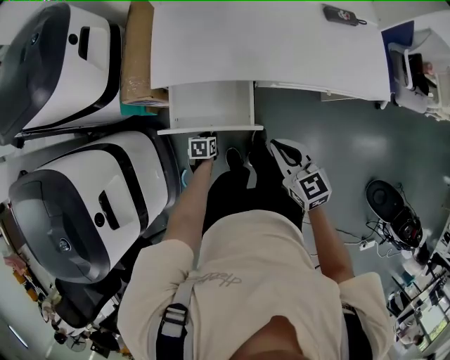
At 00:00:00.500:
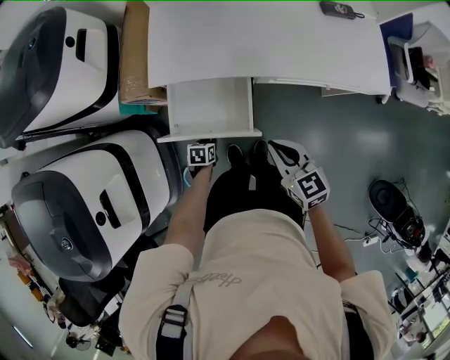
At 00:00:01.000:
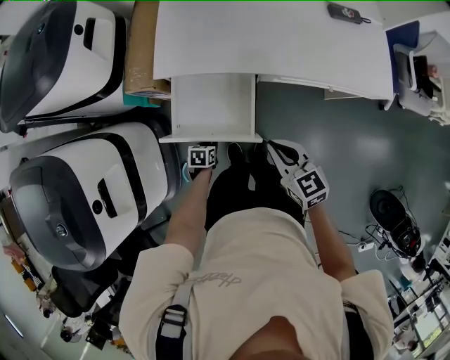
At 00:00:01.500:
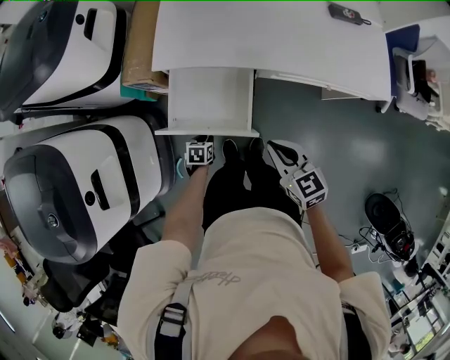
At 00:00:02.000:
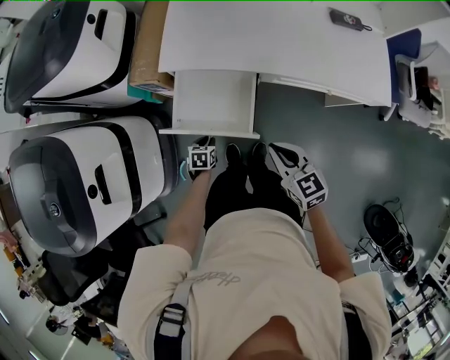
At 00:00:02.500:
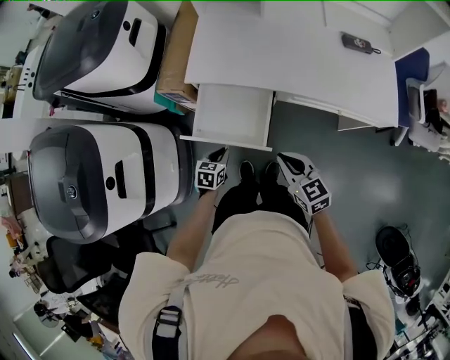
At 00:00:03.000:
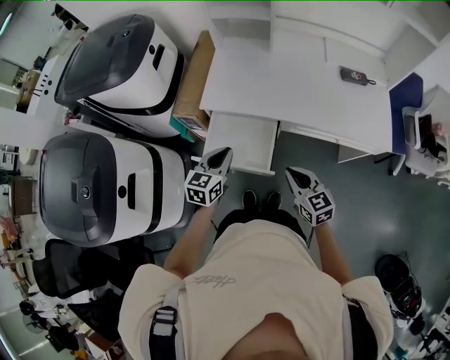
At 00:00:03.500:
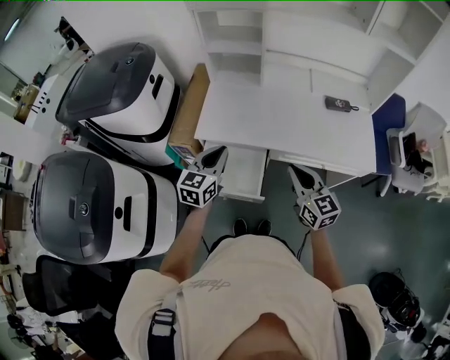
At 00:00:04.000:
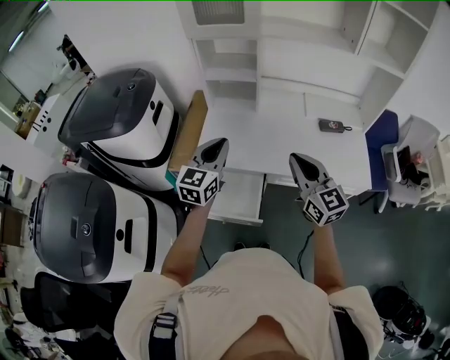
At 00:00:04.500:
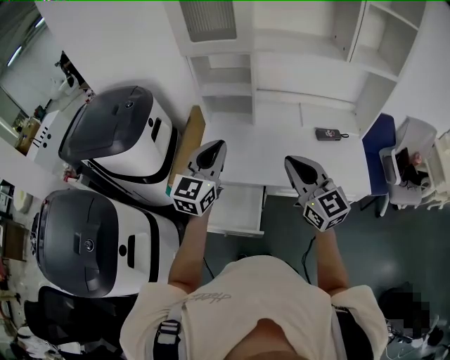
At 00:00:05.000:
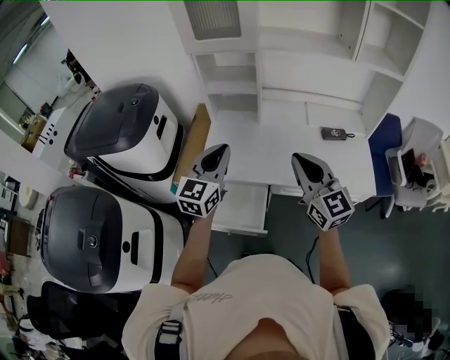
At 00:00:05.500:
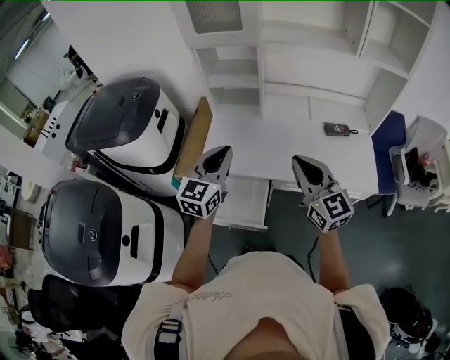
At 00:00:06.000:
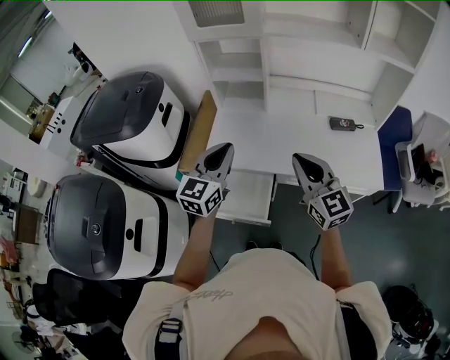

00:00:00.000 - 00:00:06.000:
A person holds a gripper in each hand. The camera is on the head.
00:00:00.000 - 00:00:02.000: Both grippers travel together backward, roughly 5 cm.
00:00:02.000 - 00:00:04.000: The left gripper heads upward, covering roughly 50 cm, and tips its fingers upward by about 60 degrees; the right gripper goes roughly 30 cm upward, and turns by some 30 degrees.

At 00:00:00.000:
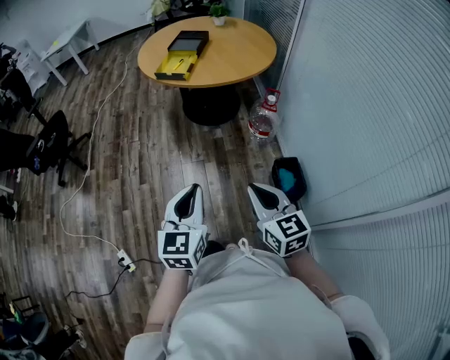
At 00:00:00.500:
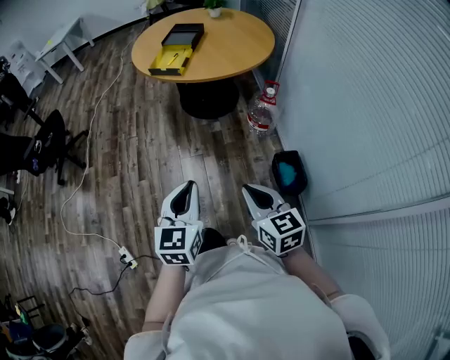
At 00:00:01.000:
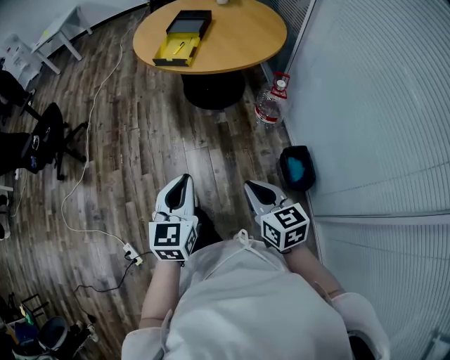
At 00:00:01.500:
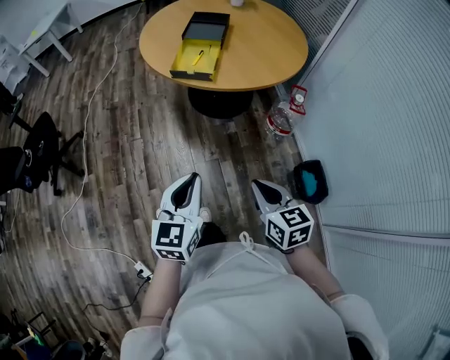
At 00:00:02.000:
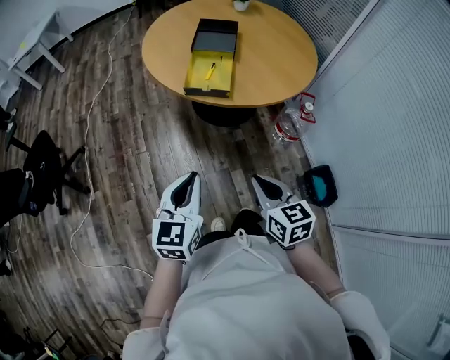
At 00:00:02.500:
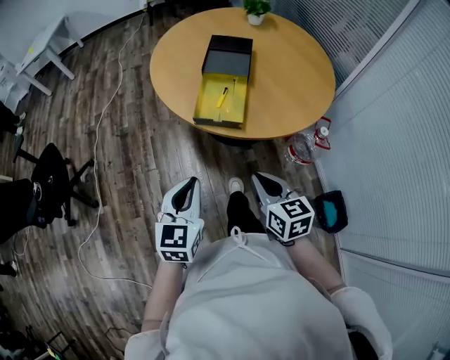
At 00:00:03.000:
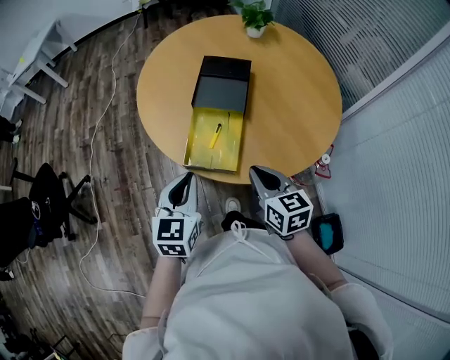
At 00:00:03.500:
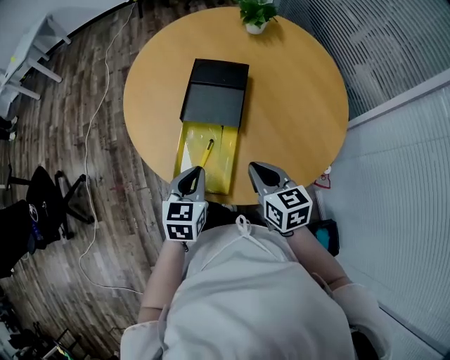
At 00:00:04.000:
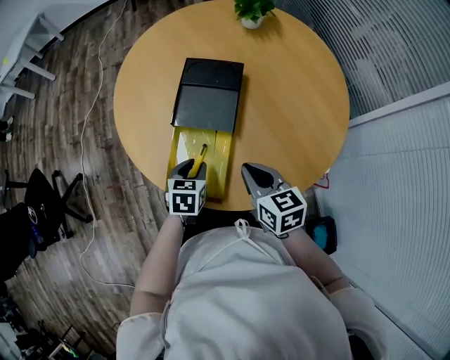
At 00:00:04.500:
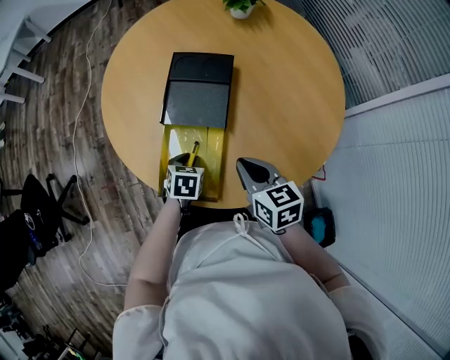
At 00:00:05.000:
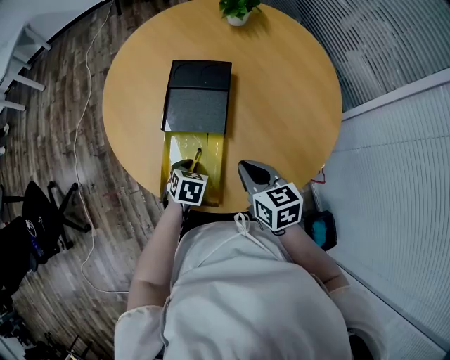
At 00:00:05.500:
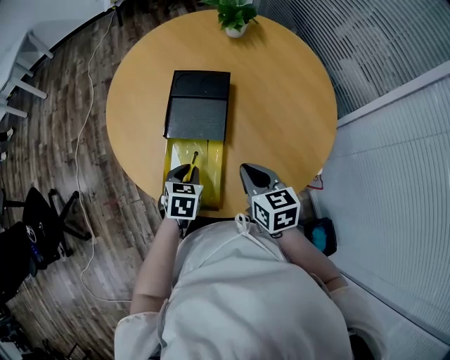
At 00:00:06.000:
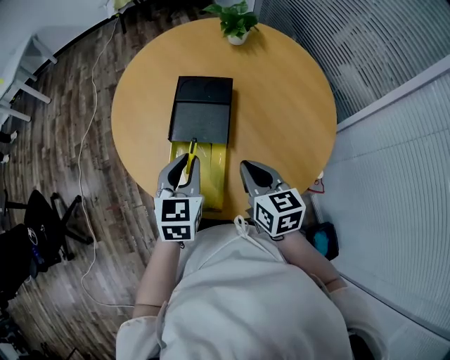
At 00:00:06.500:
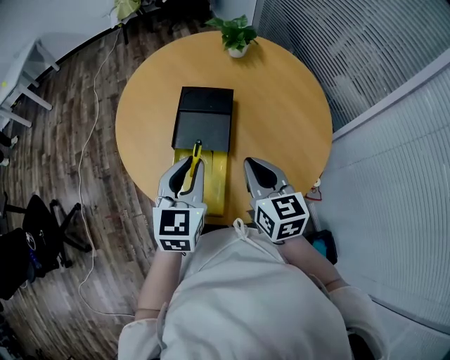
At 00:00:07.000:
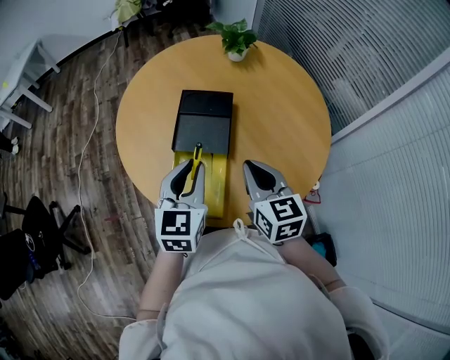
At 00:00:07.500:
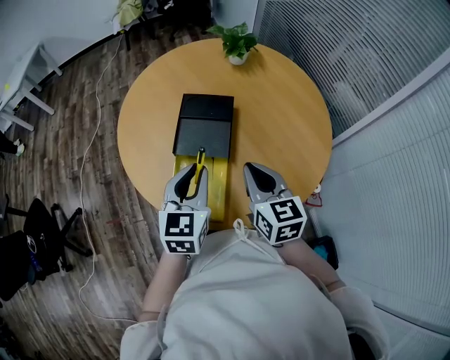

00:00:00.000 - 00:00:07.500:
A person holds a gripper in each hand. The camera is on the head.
00:00:00.000 - 00:00:02.000: Both grippers are carried forward and to the left, roughly 50 cm.
00:00:02.000 - 00:00:04.000: The pair of grippers is taken forward, some 60 cm. The left gripper points its fingers approximately 30 degrees further downward, and opens.
00:00:04.000 - 00:00:05.500: The grippers move only a little.
00:00:05.500 - 00:00:07.500: The right gripper moves upward, roughly 10 cm; the left gripper is displaced upward by about 20 cm, and points its fingers some 30 degrees further upward.

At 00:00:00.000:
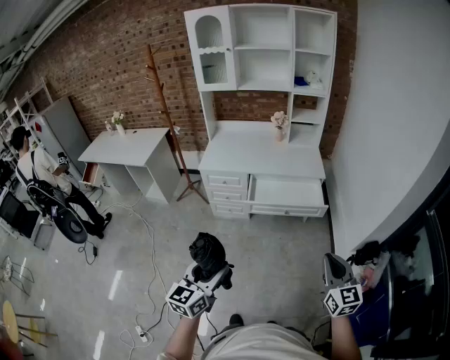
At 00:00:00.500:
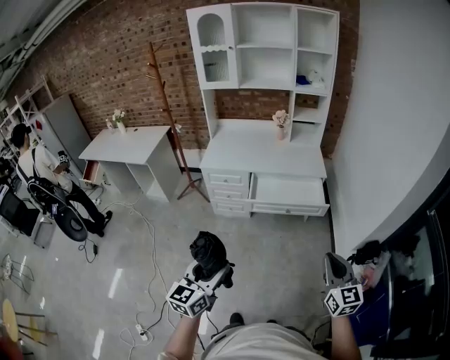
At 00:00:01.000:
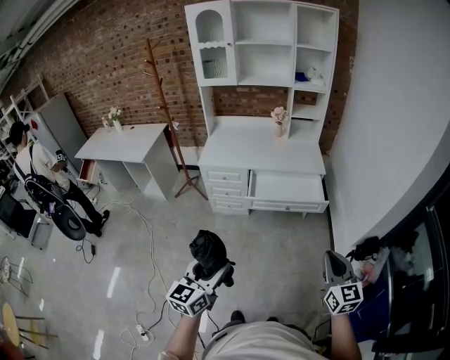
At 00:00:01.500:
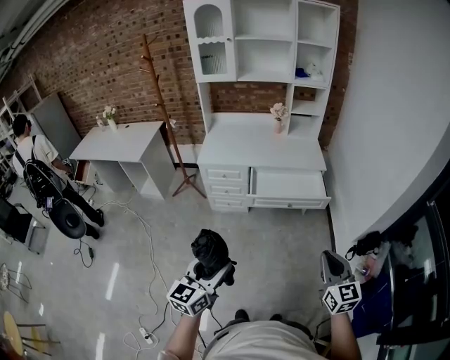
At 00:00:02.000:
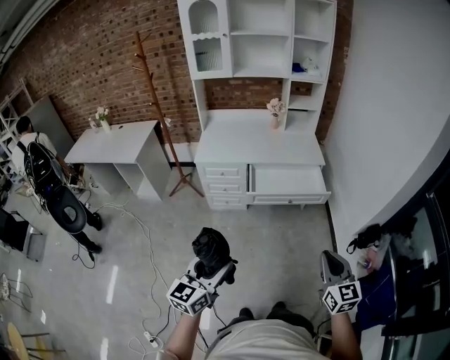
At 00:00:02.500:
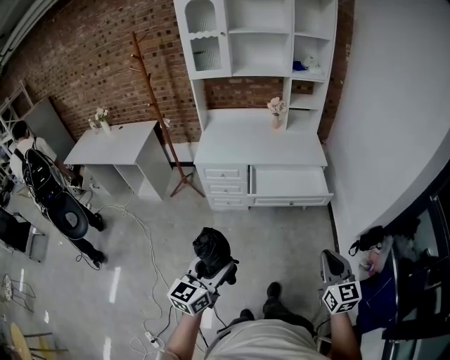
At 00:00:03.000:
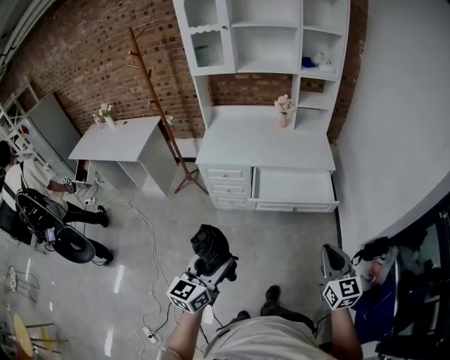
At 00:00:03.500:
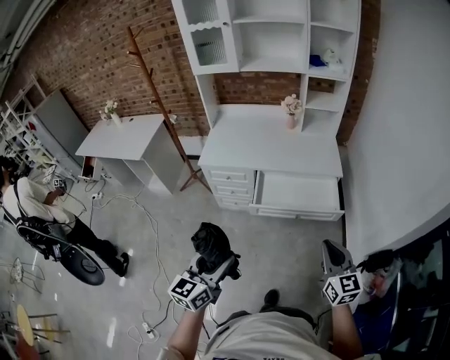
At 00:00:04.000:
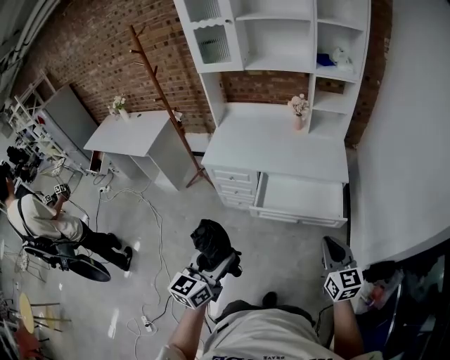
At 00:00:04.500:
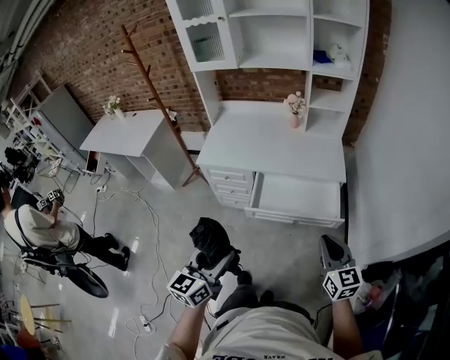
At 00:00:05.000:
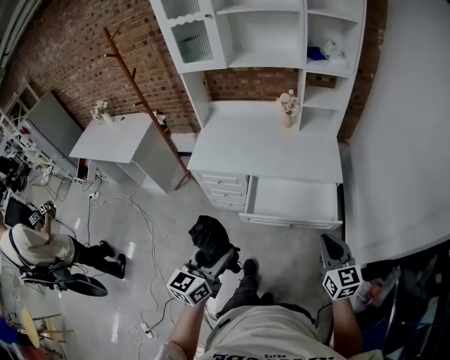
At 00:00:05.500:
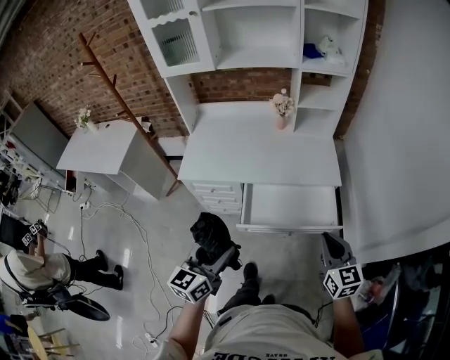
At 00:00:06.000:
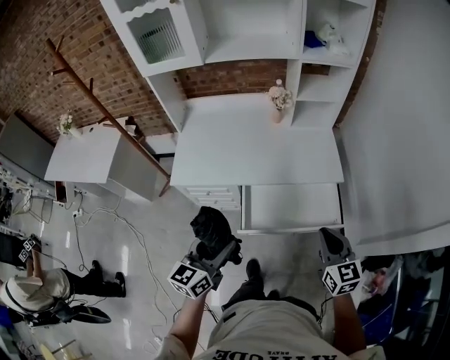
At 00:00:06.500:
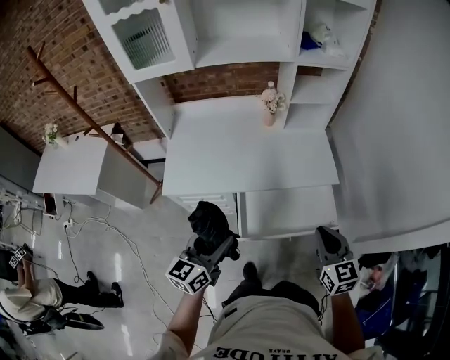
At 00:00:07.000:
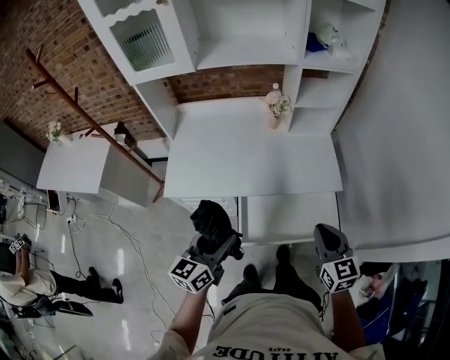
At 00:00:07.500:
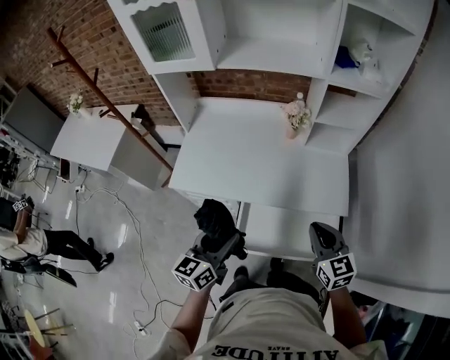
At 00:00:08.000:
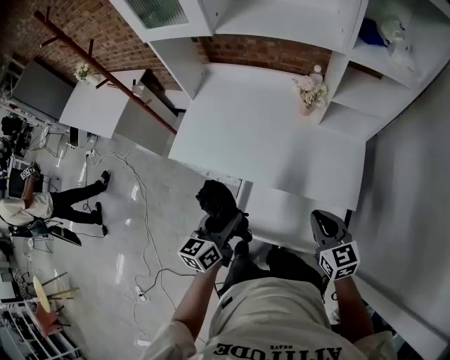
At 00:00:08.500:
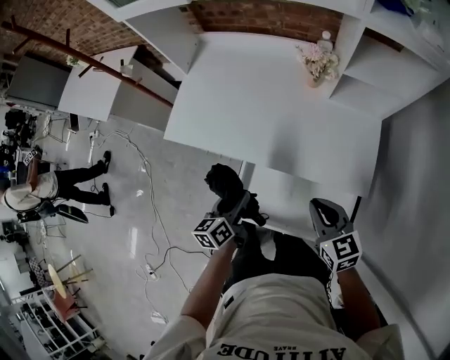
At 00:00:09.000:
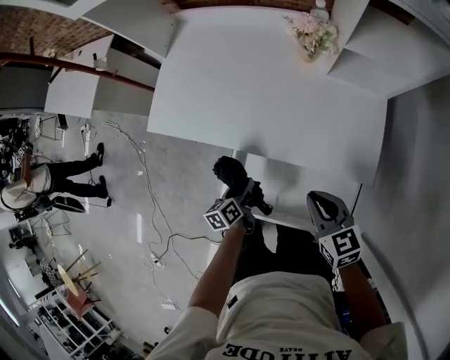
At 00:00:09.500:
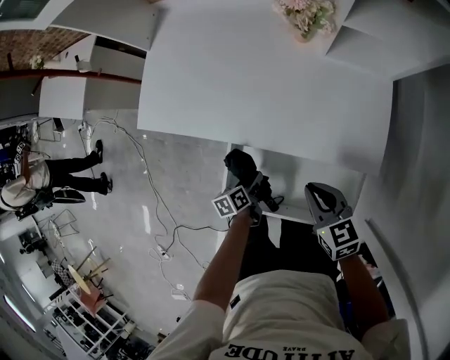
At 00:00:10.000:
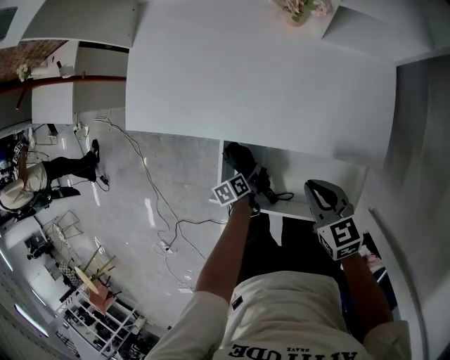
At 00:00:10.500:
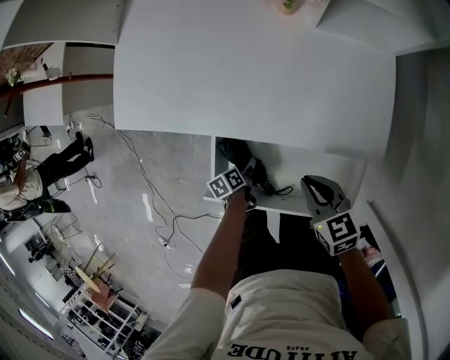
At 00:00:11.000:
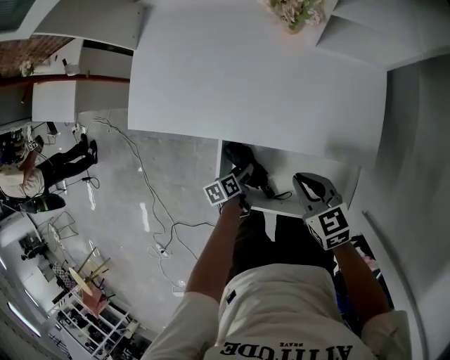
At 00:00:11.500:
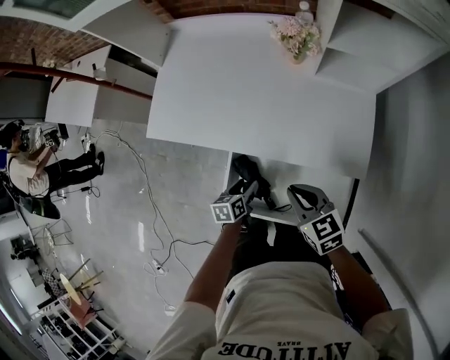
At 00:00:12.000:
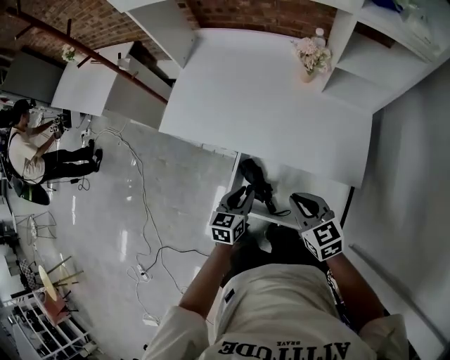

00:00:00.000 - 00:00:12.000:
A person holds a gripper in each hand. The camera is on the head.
00:00:00.000 - 00:00:02.000: The grippers both shift to the left by some 10 cm.
00:00:02.000 - 00:00:04.000: The left gripper goes approximately 20 cm forward and to the right, while the right gripper shifts some 30 cm forward.
00:00:04.000 - 00:00:06.000: The two grippers go about 25 cm forward.
00:00:06.000 - 00:00:08.000: The right gripper changes place by roughly 25 cm, and rotates about 30 degrees. Meanwhile the left gripper moves roughly 20 cm, and changes its angle by some 30 degrees.
00:00:08.000 - 00:00:10.000: The left gripper heads downward, covering some 40 cm, and points its fingers about 40 degrees further downward; the right gripper goes roughly 20 cm downward, and changes its angle by about 20 degrees.
00:00:10.000 - 00:00:12.000: The left gripper travels upward by approximately 25 cm, rotates around the line of its fingers by some 40 degrees, clockwise from behind, and closes. Meanwhile the right gripper is displaced upward and to the left by about 10 cm.

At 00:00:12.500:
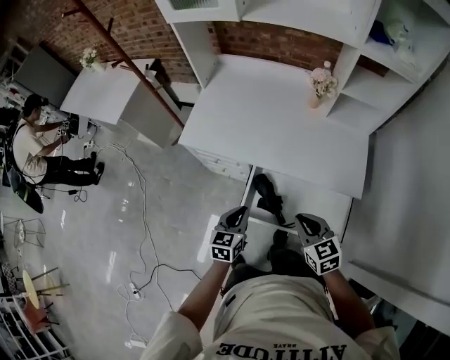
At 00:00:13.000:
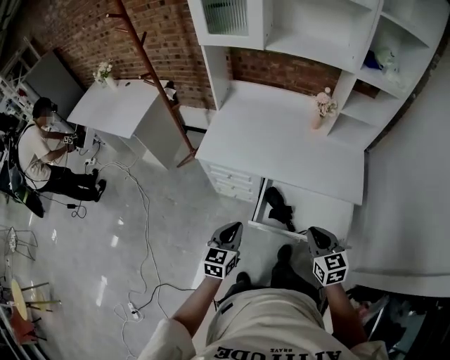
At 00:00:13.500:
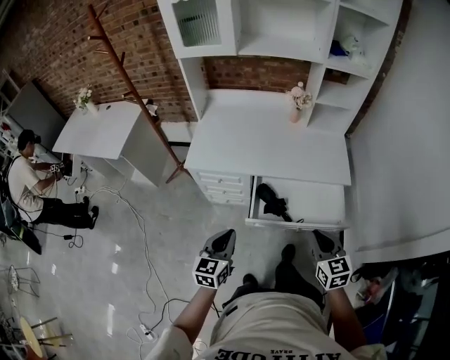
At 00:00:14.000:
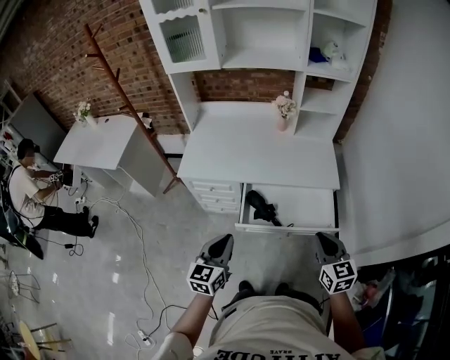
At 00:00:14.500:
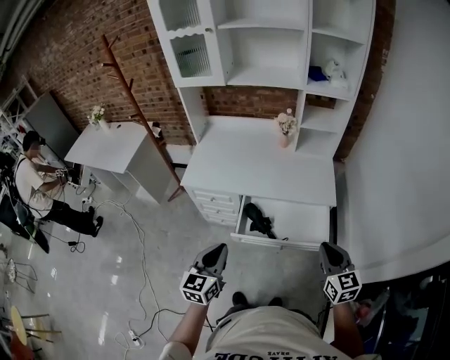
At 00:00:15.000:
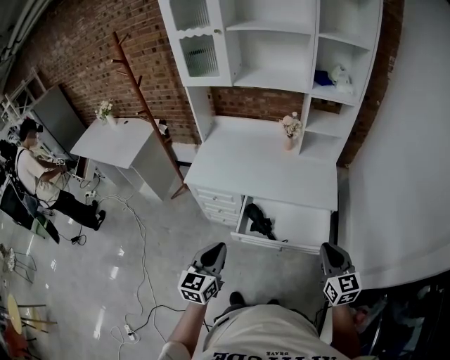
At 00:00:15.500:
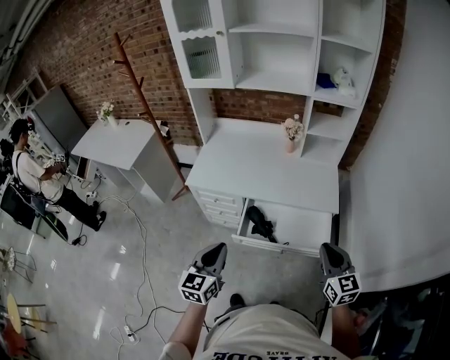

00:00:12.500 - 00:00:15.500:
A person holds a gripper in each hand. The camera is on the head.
00:00:12.500 - 00:00:14.000: The left gripper goes about 20 cm upward and backward, while the right gripper moves backward and upward, some 20 cm, and swivels approximately 30 degrees.
00:00:14.000 - 00:00:15.500: The right gripper goes about 5 cm to the right; the left gripper shifts by approximately 5 cm.
